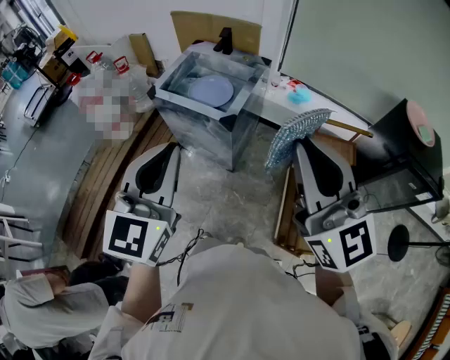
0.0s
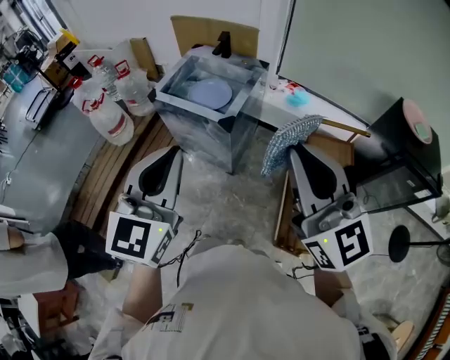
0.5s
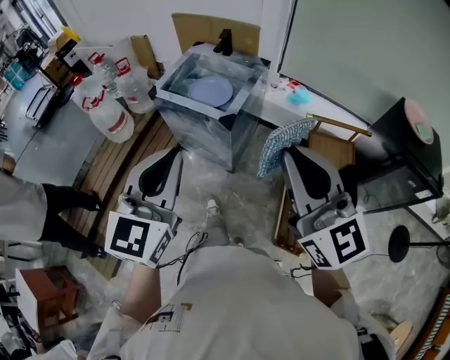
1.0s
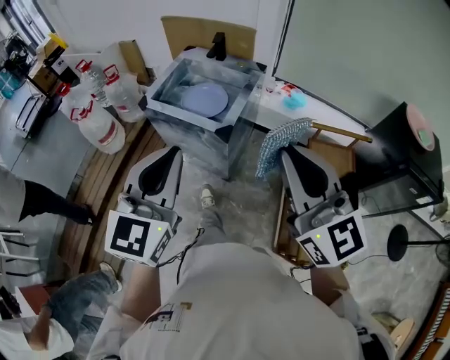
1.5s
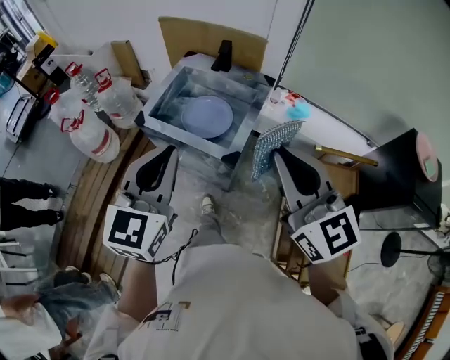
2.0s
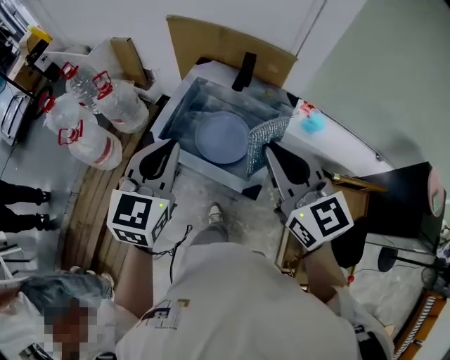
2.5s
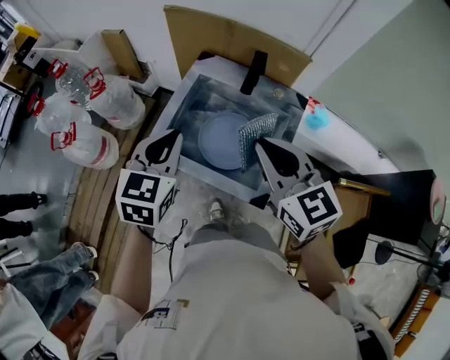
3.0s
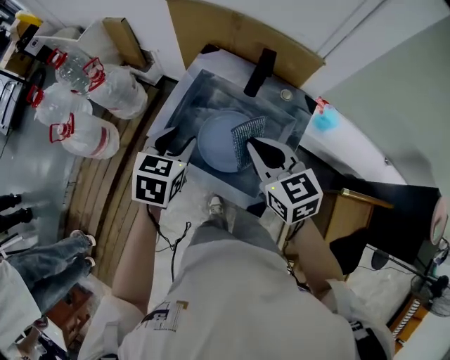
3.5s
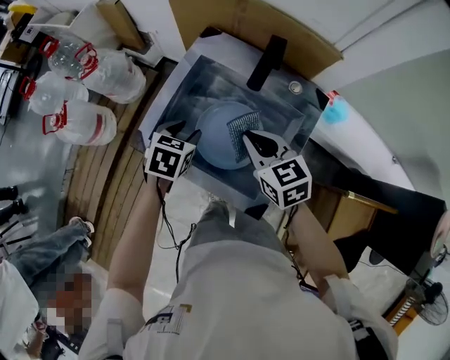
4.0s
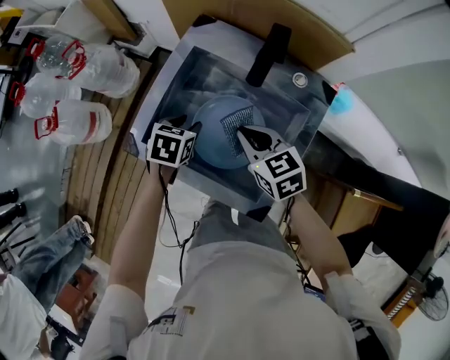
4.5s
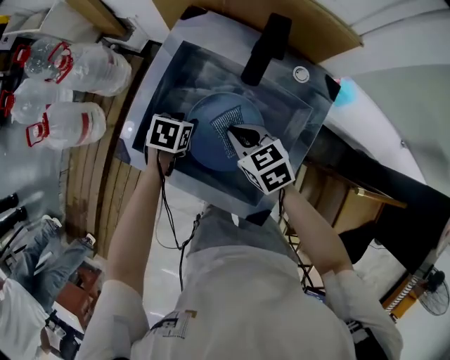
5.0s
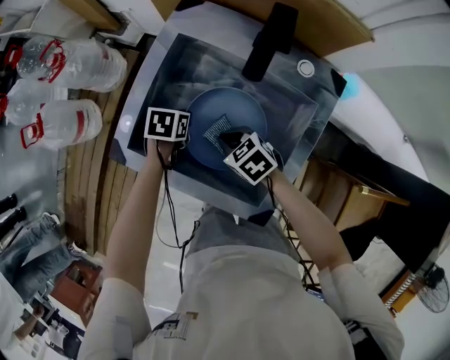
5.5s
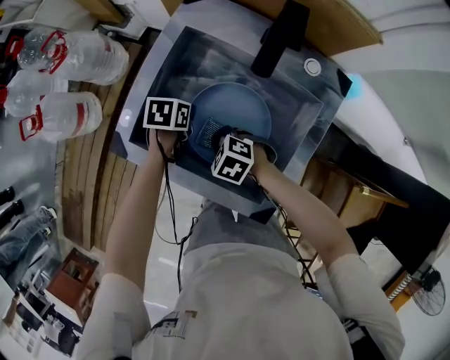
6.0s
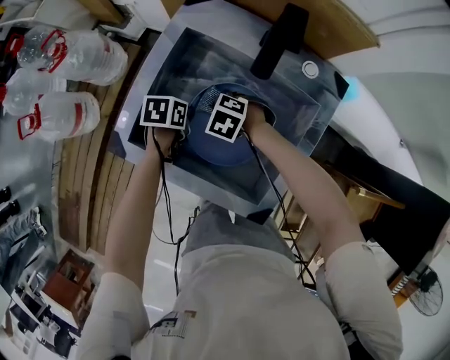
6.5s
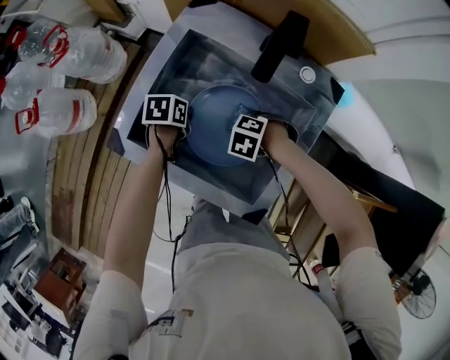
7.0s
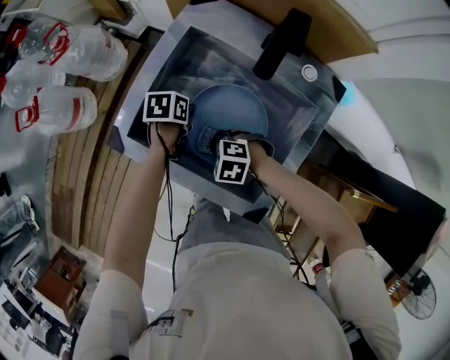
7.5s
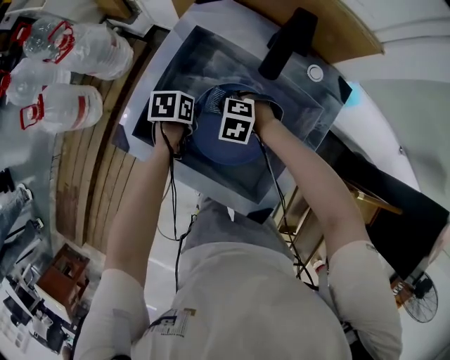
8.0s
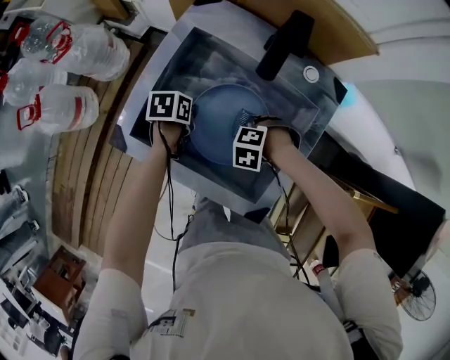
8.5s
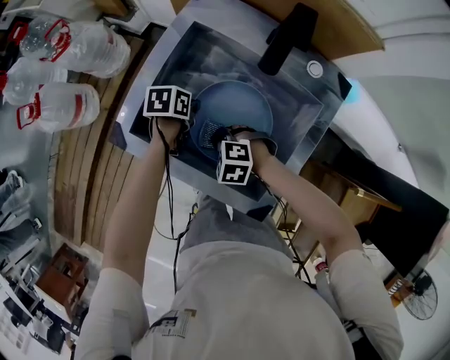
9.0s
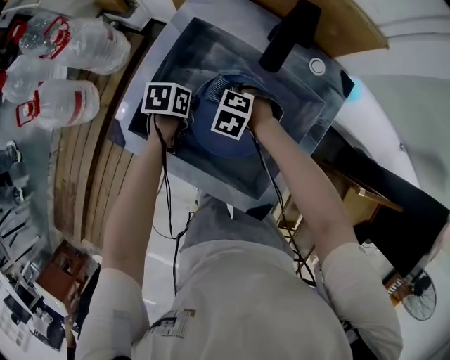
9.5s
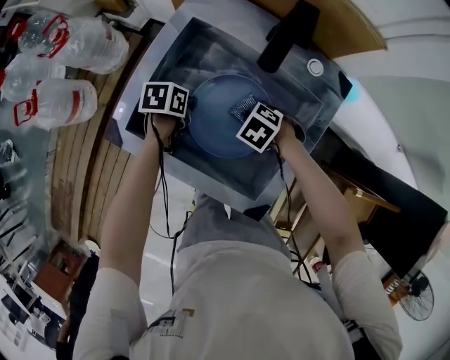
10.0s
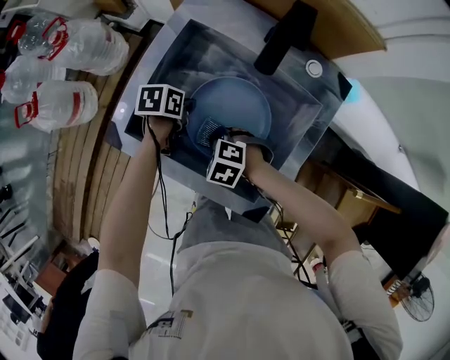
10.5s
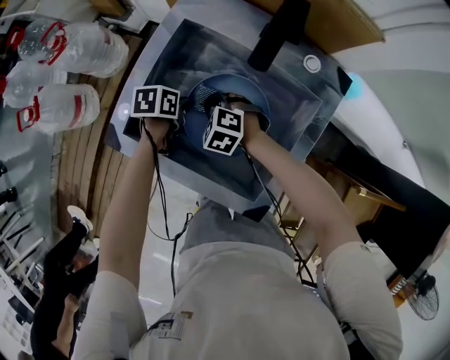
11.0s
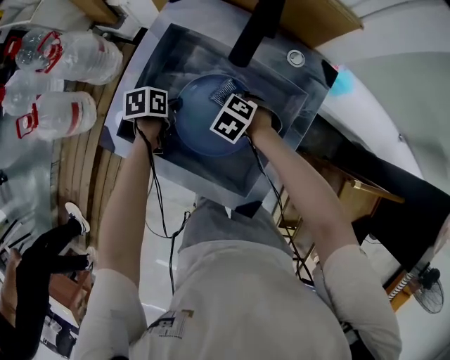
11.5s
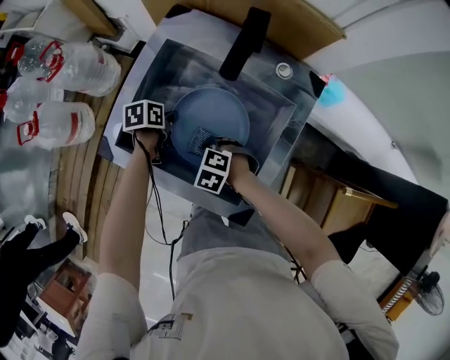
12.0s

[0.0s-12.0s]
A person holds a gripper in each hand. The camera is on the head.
0.0s to 2.0s: The two grippers go roughly 20 cm forward.
2.0s to 4.0s: Both grippers move forward and downward, some 50 cm. The left gripper tilts its fingers some 50 degrees downward, and opens. Meanwhile the right gripper points its fingers about 30 degrees further downward.
4.0s to 6.0s: Both grippers move downward, approximately 20 cm. The left gripper turns by some 30 degrees, and closes its fingers, while the right gripper points its fingers approximately 30 degrees further downward.
6.0s to 8.0s: The right gripper moves roughly 10 cm, and turns by some 20 degrees.
8.0s to 10.0s: The right gripper shifts by roughly 10 cm, and swivels some 20 degrees.
10.0s to 12.0s: The right gripper shifts by roughly 10 cm.

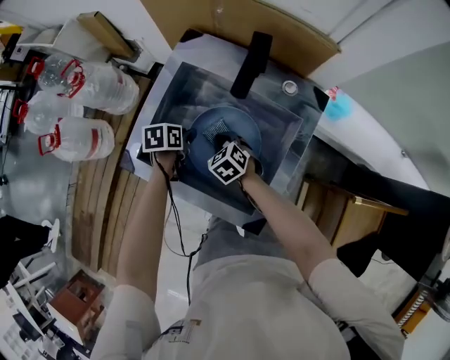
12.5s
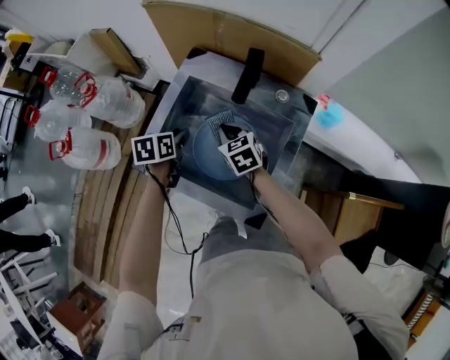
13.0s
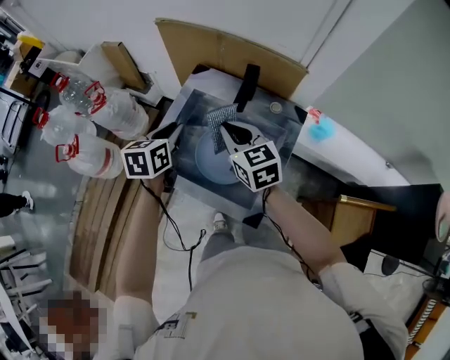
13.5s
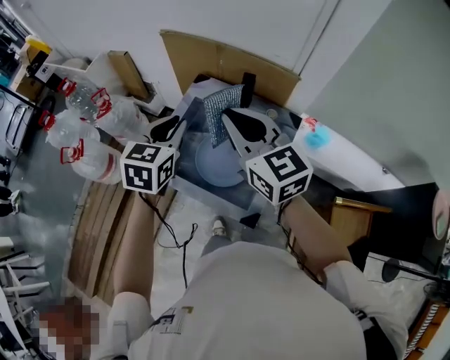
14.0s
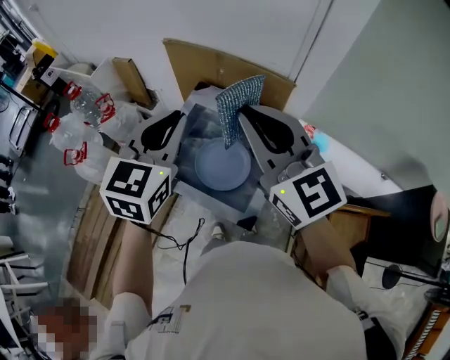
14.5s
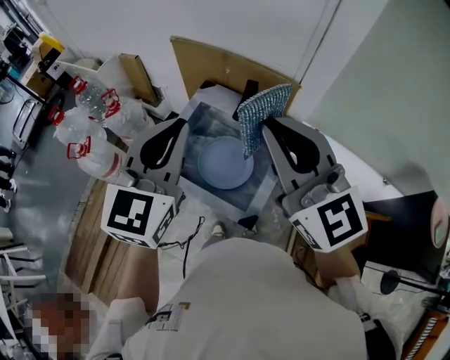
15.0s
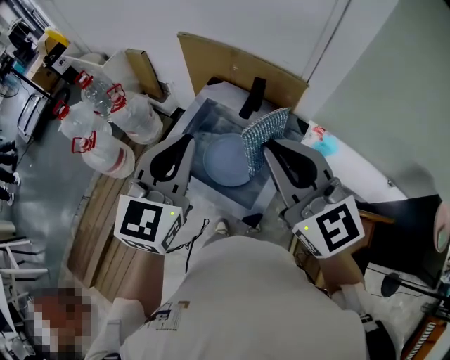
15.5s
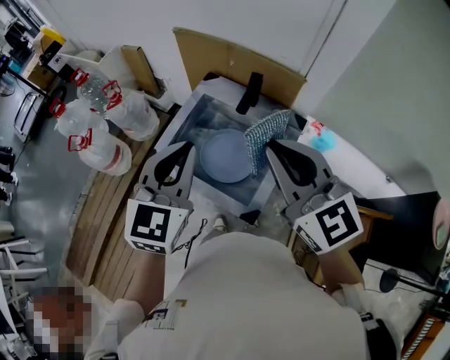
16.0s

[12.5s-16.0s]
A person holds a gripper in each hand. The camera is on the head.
12.5s to 14.5s: The two grippers go some 50 cm upward. The left gripper points its fingers some 40 degrees further upward, and closes, while the right gripper tilts its fingers some 60 degrees upward.
14.5s to 16.0s: The two grippers go about 5 cm backward.

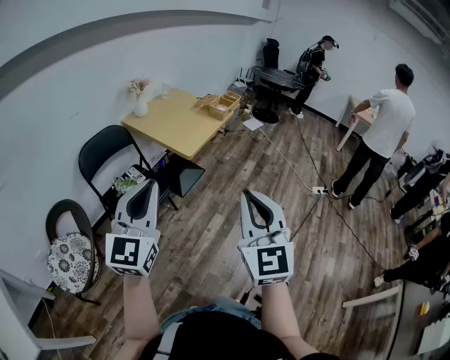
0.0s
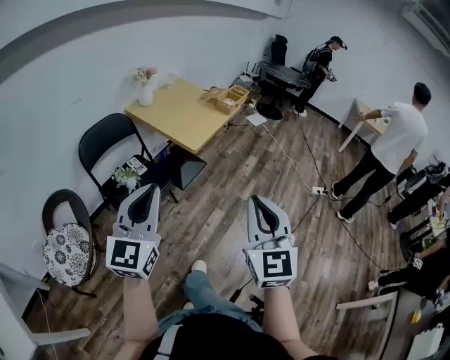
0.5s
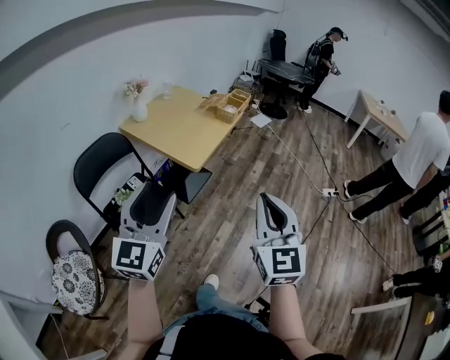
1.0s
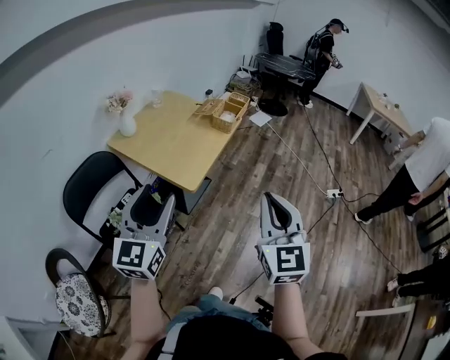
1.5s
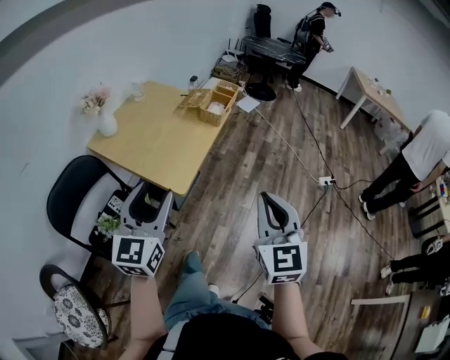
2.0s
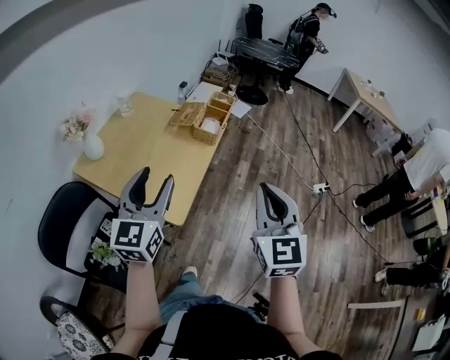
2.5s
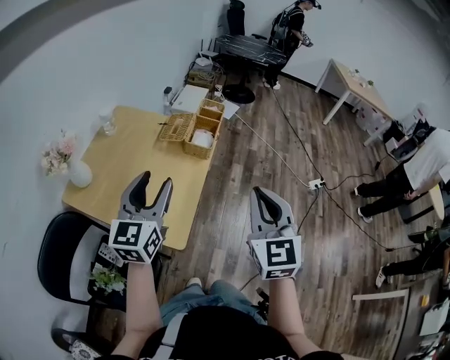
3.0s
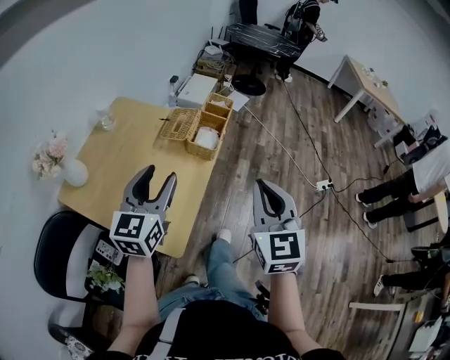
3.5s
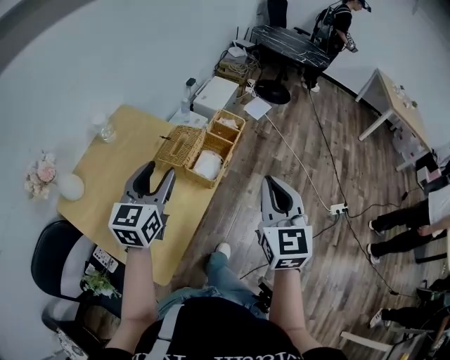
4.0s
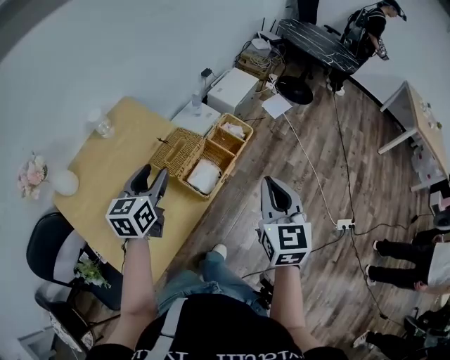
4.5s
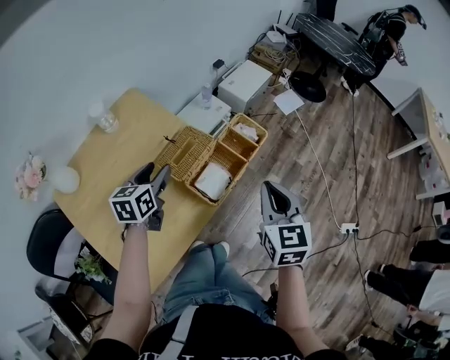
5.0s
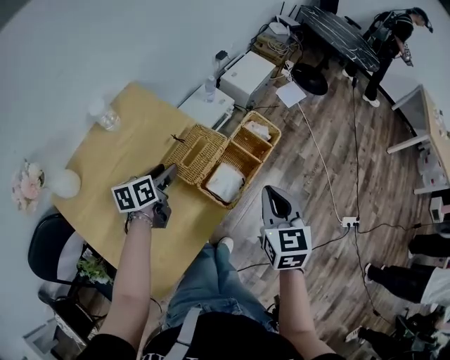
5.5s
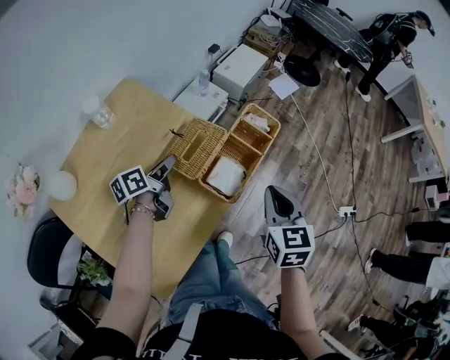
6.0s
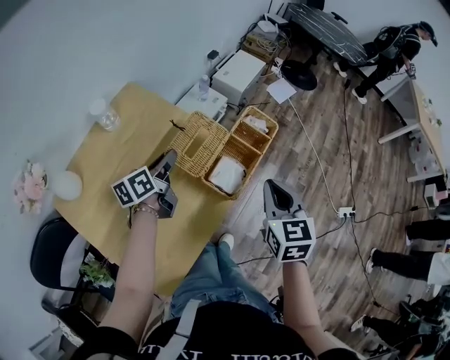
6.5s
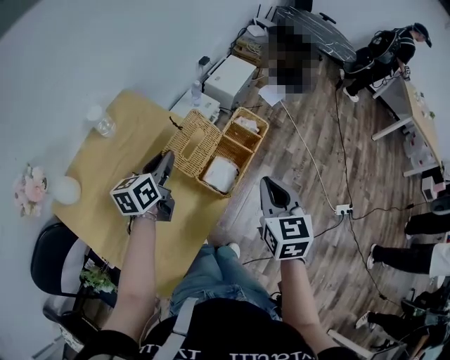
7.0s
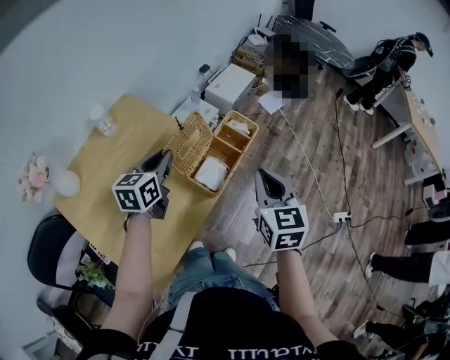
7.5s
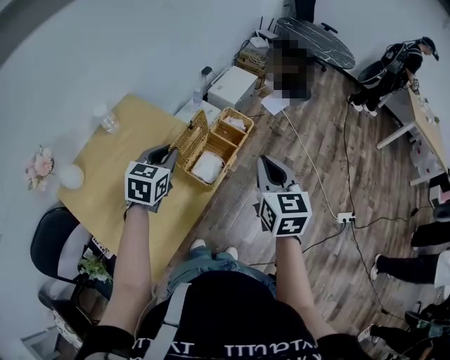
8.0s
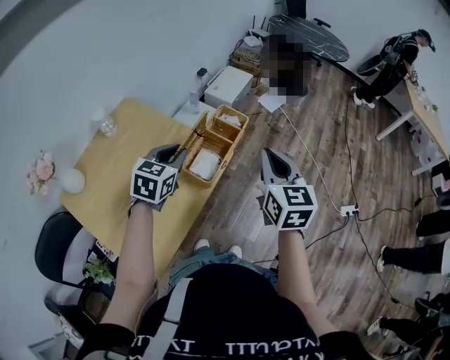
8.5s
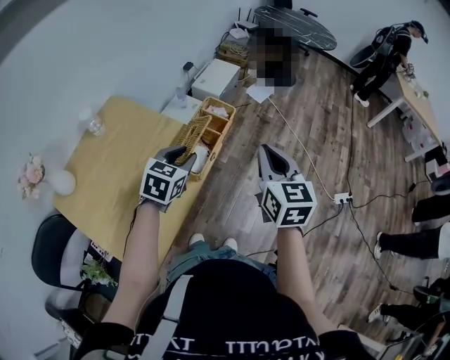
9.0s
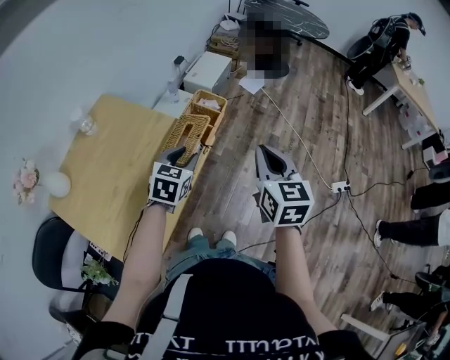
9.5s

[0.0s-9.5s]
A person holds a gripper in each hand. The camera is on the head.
0.0s to 2.0s: Both grippers move forward, about 40 cm. The left gripper opens up.
2.0s to 4.0s: Both grippers are carried forward, approximately 50 cm.
4.0s to 5.5s: The right gripper goes approximately 20 cm forward and downward, and turns by about 20 degrees; the left gripper shifts approximately 25 cm downward and forward, and rotates roughly 40 degrees.
5.5s to 7.5s: The right gripper goes about 5 cm upward. Meanwhile the left gripper moves upward, about 15 cm, rotates roughly 20 degrees, and closes its fingers.
7.5s to 9.5s: The left gripper moves to the right, some 15 cm, and rotates approximately 30 degrees. Meanwhile the right gripper heads to the right, covering about 10 cm.

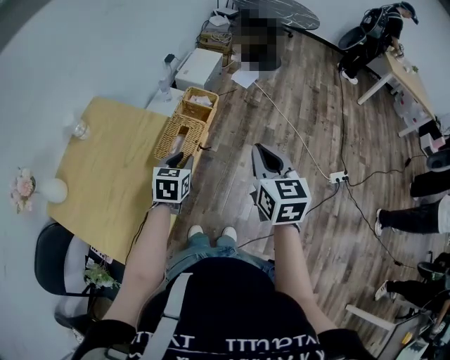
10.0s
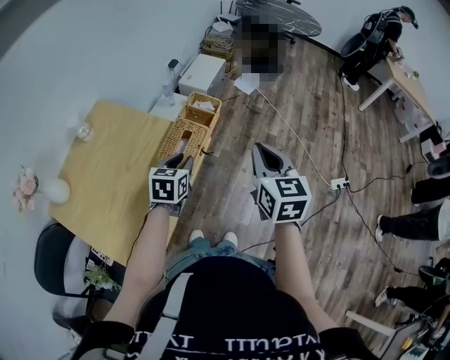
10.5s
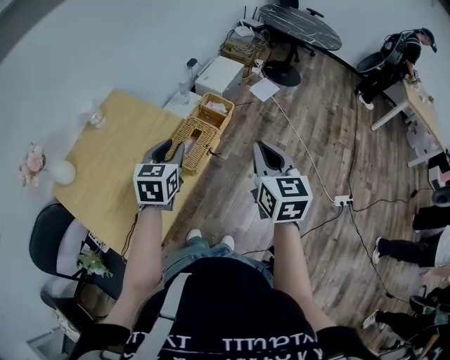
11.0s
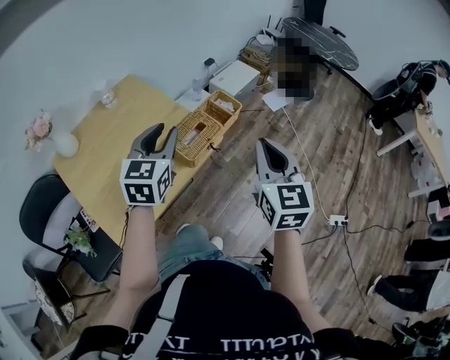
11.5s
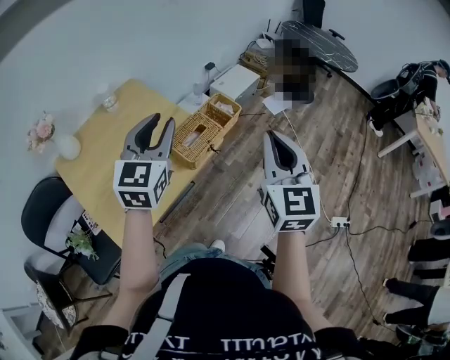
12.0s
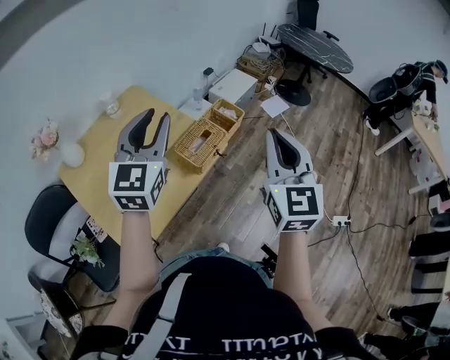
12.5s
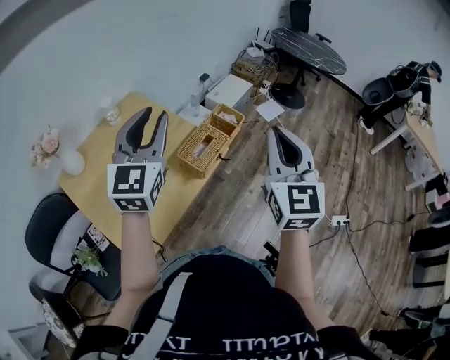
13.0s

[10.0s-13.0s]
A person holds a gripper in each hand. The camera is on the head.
10.0s to 11.5s: The right gripper travels upward by some 5 cm, and swivels some 20 degrees. Meanwhile the left gripper heads upward, covering approximately 20 cm, and rotates roughly 30 degrees.
11.5s to 13.0s: The right gripper is displaced upward by roughly 10 cm. The left gripper shifts some 15 cm upward and to the left, and rotates some 20 degrees.
